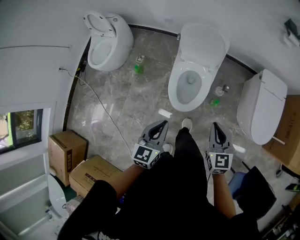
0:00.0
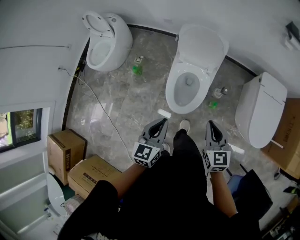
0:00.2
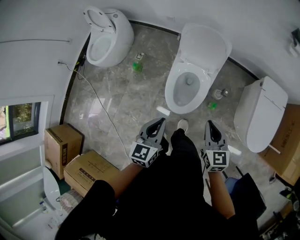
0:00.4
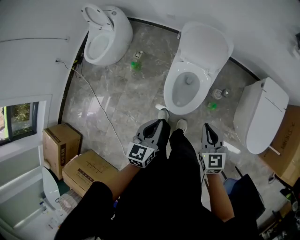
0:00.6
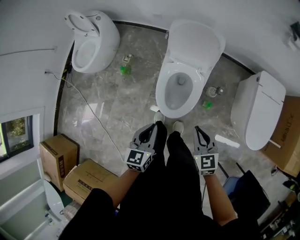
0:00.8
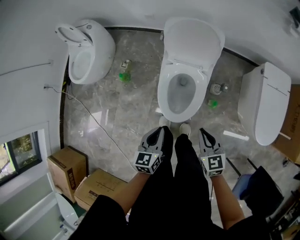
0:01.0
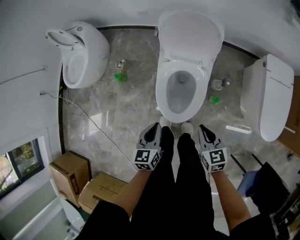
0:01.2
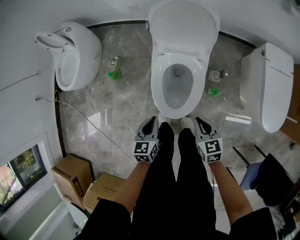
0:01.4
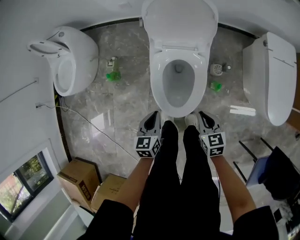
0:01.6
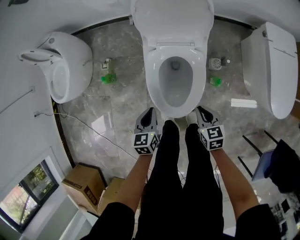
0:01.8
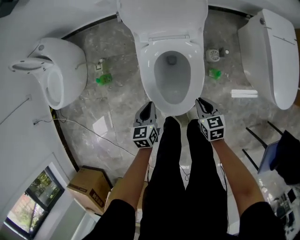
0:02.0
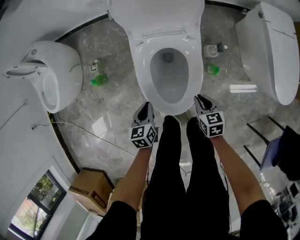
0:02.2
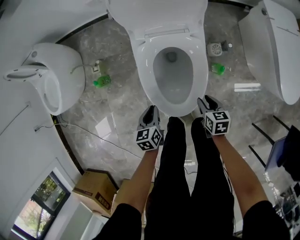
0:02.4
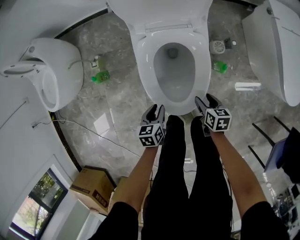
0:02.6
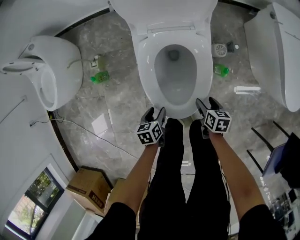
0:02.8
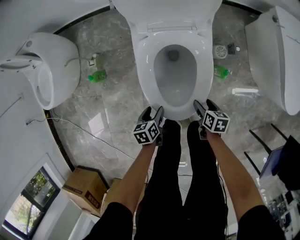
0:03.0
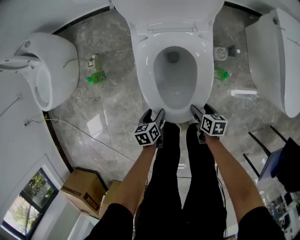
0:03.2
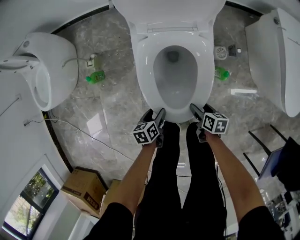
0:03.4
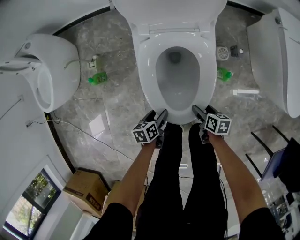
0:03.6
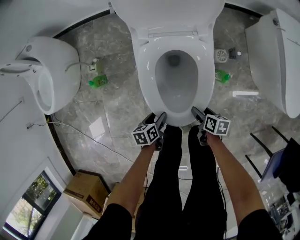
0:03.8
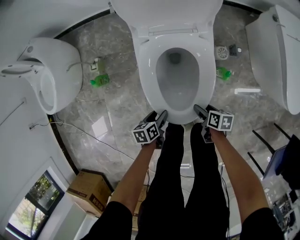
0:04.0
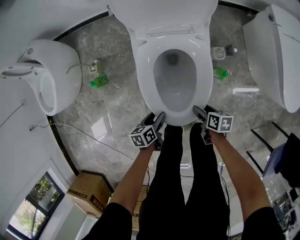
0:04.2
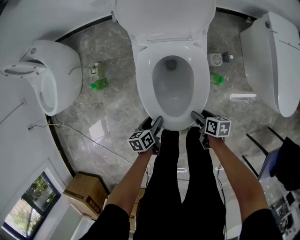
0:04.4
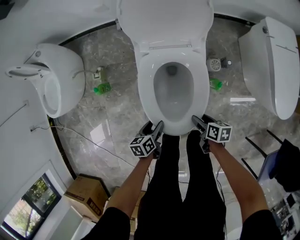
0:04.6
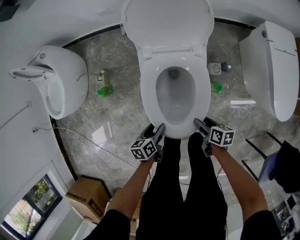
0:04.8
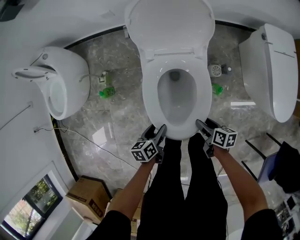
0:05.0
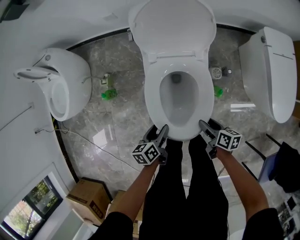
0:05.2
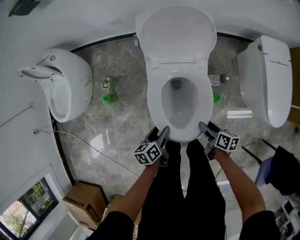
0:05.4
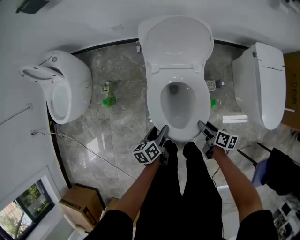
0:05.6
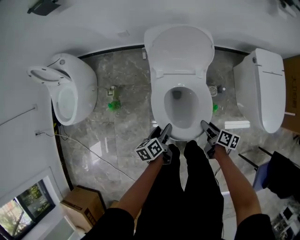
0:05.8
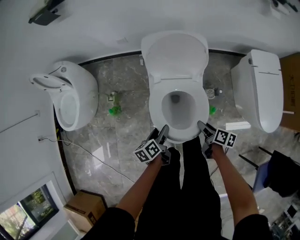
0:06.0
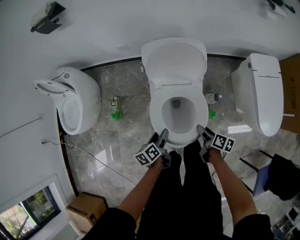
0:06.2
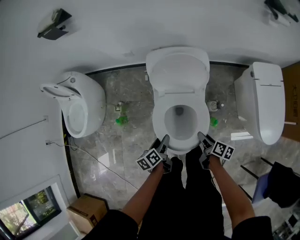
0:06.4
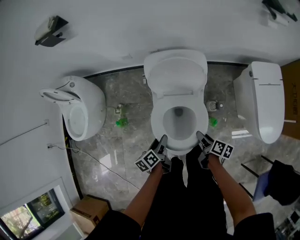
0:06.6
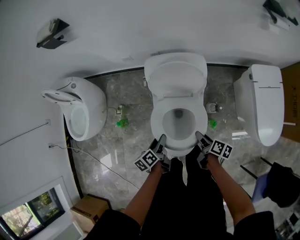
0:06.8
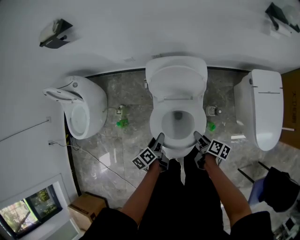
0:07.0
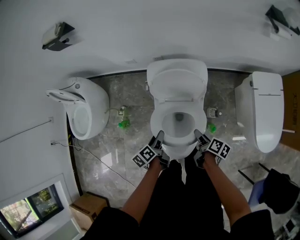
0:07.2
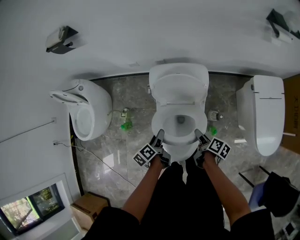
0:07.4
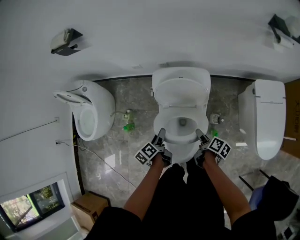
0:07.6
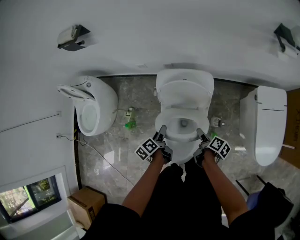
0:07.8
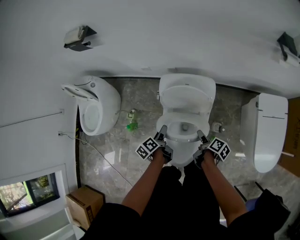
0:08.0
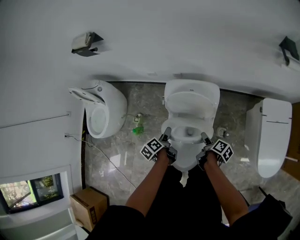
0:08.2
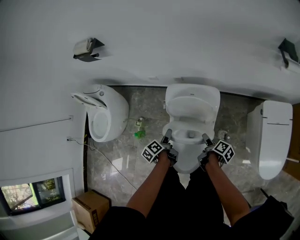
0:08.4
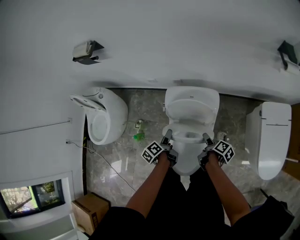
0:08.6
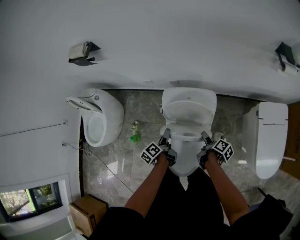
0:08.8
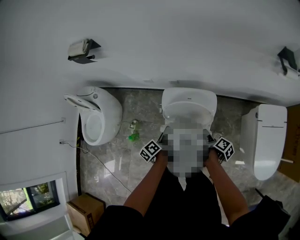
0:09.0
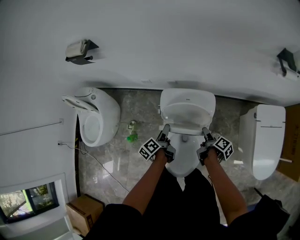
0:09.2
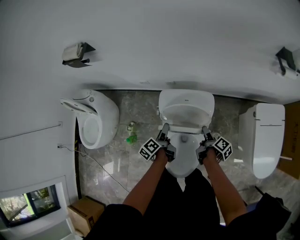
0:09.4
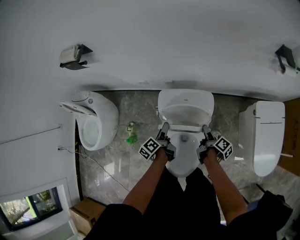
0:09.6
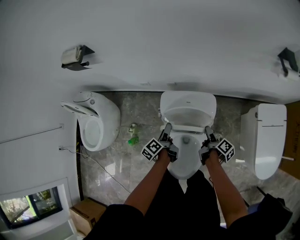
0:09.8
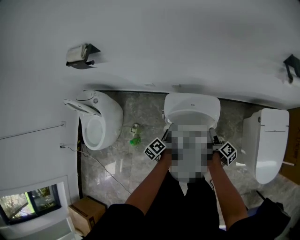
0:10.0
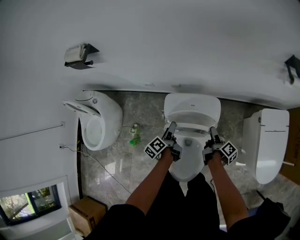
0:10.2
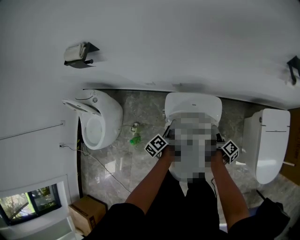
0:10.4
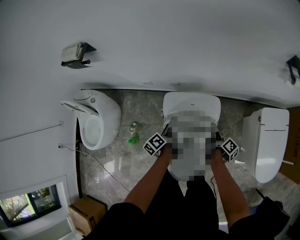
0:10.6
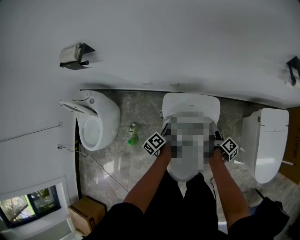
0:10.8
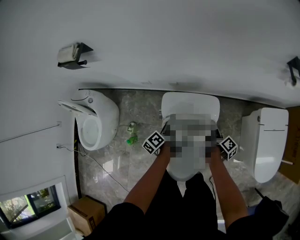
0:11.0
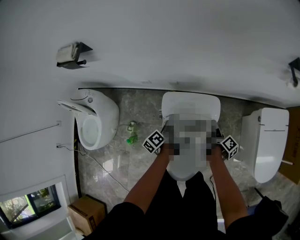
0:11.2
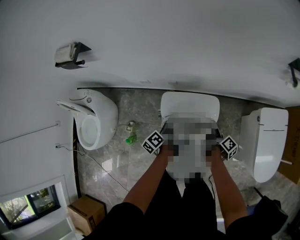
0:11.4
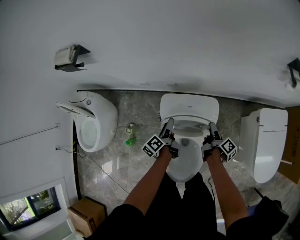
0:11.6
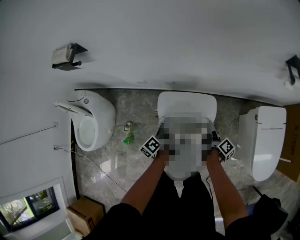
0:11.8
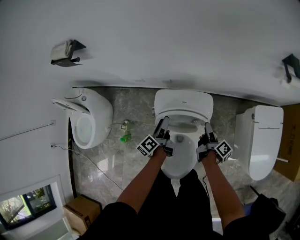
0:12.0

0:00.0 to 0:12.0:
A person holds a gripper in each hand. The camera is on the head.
0:00.0 to 0:01.6: The right gripper travels downward by about 35 cm, and turns by about 20 degrees; the left gripper goes approximately 35 cm downward and forward.
0:01.6 to 0:03.0: The two grippers go some 25 cm downward. The right gripper changes its angle by some 40 degrees, and opens up. Meanwhile the left gripper changes its angle by roughly 30 degrees, and opens.
0:03.0 to 0:04.4: The grippers move only a little.
0:04.4 to 0:06.0: The two grippers go roughly 25 cm upward and forward. The right gripper turns by roughly 20 degrees.
0:06.0 to 0:07.6: Both grippers travel together forward and upward, some 15 cm.
0:07.6 to 0:09.0: Both grippers travel together forward, some 10 cm.
0:09.0 to 0:10.4: Both grippers move forward, roughly 10 cm.
0:10.4 to 0:12.0: There are only small adjustments of the grippers.

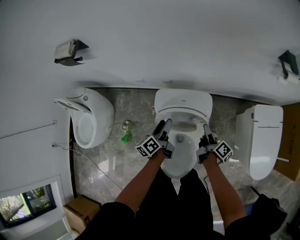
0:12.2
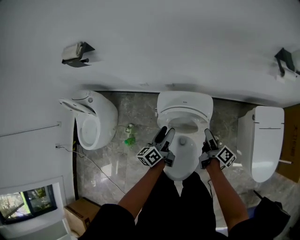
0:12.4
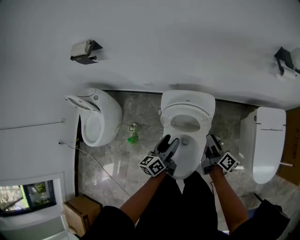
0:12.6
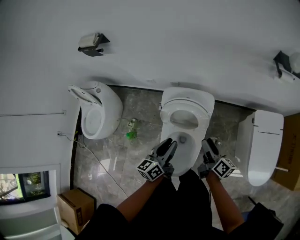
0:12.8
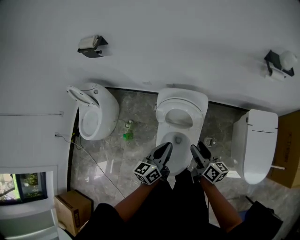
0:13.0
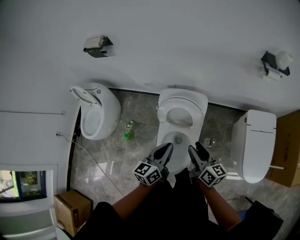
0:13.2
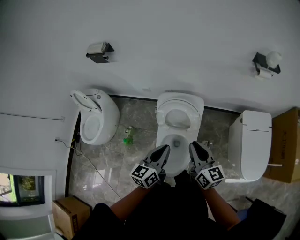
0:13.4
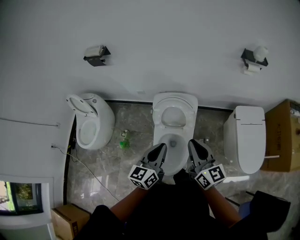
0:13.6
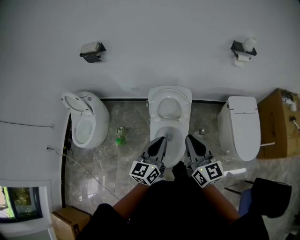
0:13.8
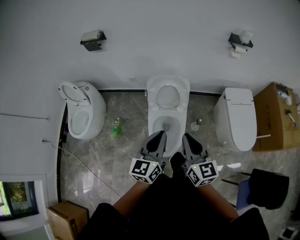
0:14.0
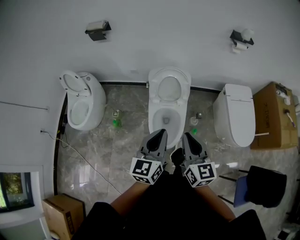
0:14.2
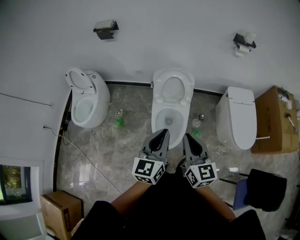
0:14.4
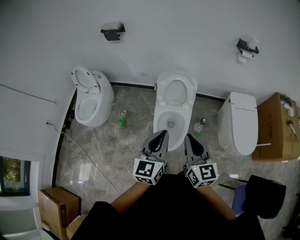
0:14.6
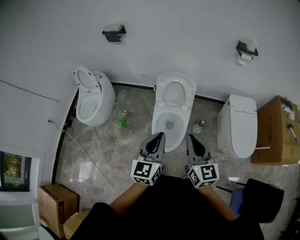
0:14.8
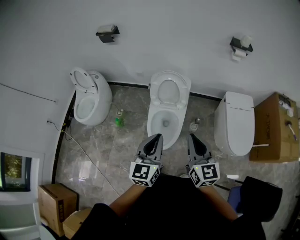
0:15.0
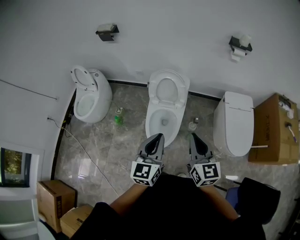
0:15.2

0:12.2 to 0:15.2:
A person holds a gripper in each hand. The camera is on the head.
0:12.2 to 0:13.8: The left gripper travels backward and upward by about 40 cm, twists some 40 degrees clockwise, seen from behind, and closes. Meanwhile the right gripper is displaced upward and backward by approximately 50 cm, rolls counterclockwise, seen from behind, by roughly 70 degrees, and closes its fingers.
0:13.8 to 0:15.2: The right gripper moves backward and to the right, approximately 20 cm; the left gripper moves backward, approximately 20 cm.

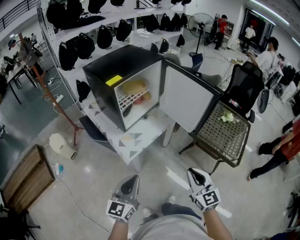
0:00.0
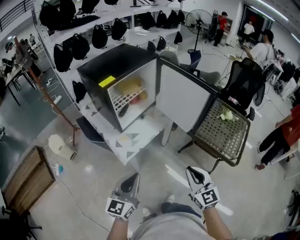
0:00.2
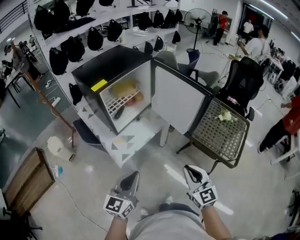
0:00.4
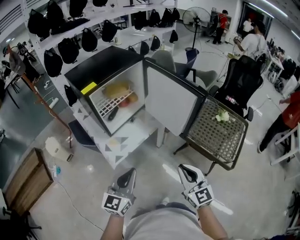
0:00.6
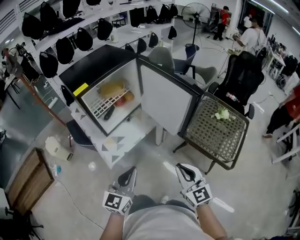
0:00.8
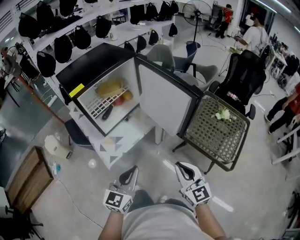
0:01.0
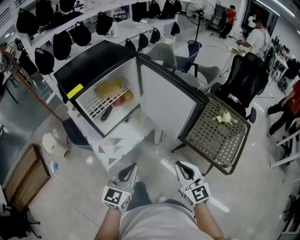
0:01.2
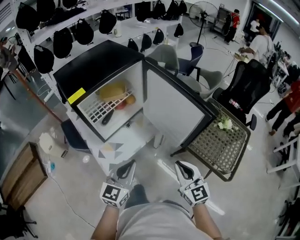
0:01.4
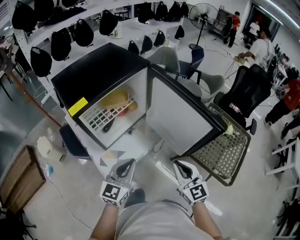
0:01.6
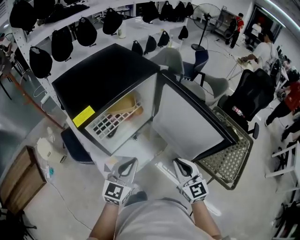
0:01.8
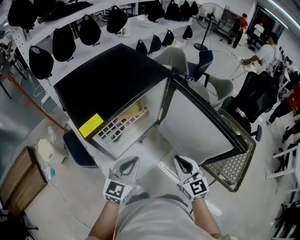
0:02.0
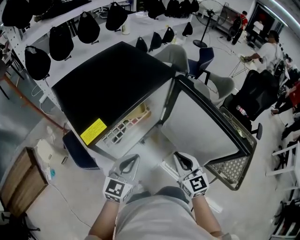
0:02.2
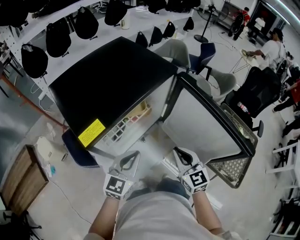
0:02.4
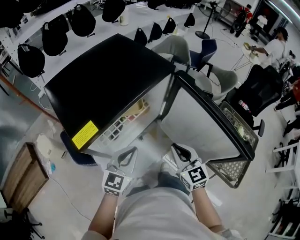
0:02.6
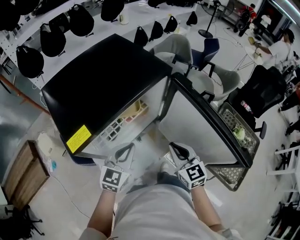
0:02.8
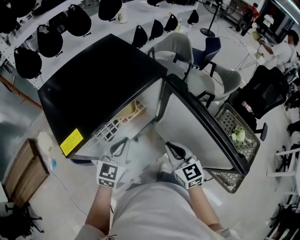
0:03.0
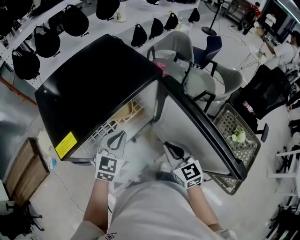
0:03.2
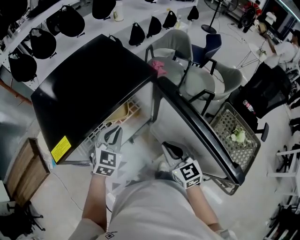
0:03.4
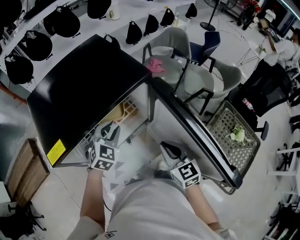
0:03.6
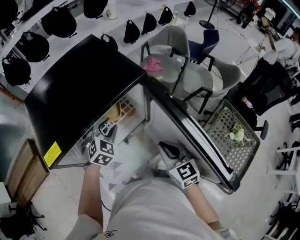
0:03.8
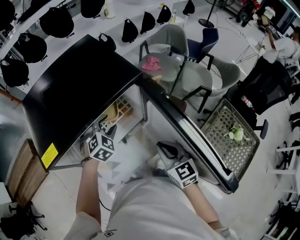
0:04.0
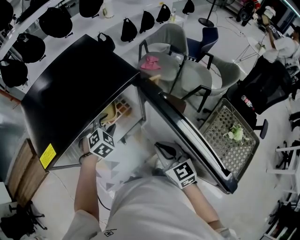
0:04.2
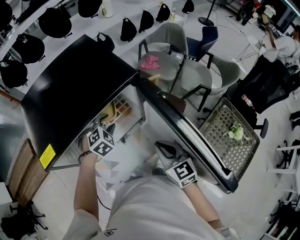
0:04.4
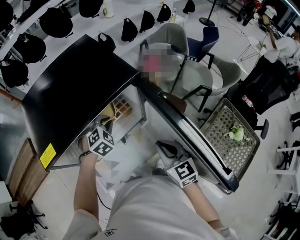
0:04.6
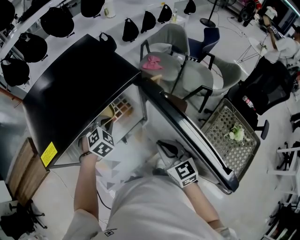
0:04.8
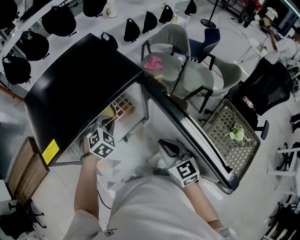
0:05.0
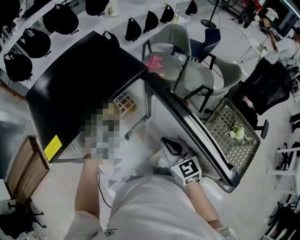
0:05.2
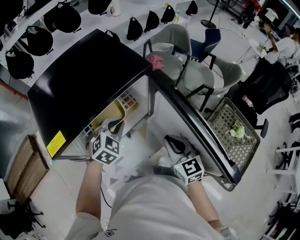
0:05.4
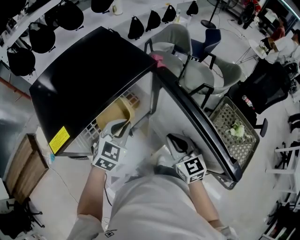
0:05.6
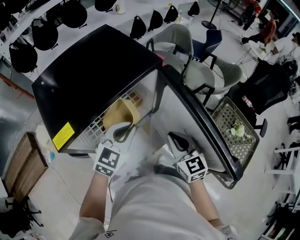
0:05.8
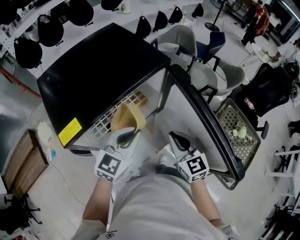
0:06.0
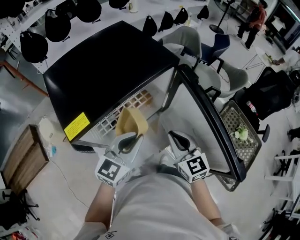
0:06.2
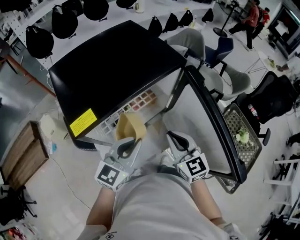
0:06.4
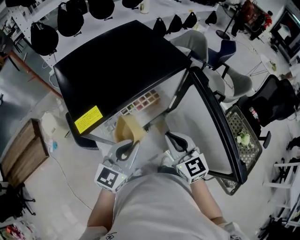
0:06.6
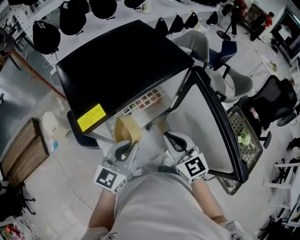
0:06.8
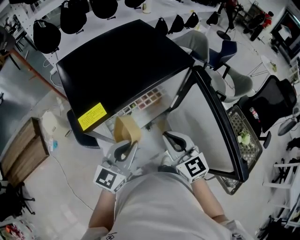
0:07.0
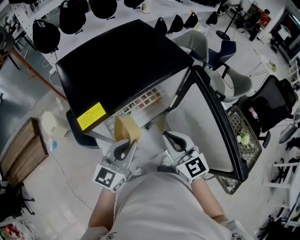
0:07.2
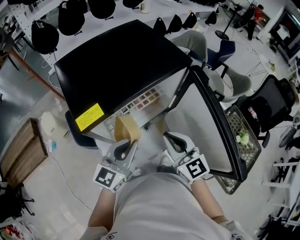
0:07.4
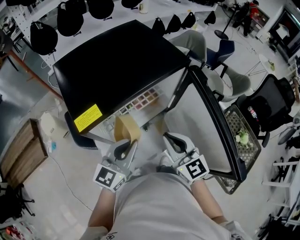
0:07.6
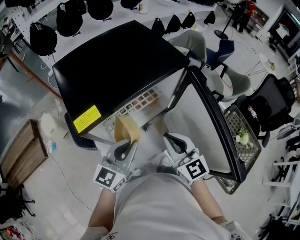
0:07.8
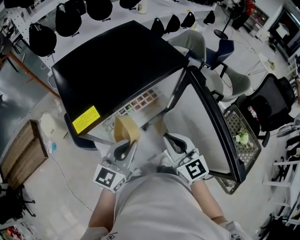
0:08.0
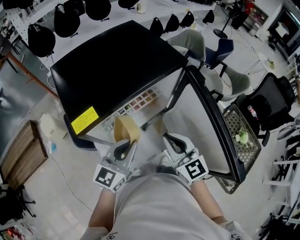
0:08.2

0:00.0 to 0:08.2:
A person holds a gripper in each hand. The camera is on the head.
0:00.0 to 0:01.6: Both grippers move forward, approximately 25 cm.
0:01.6 to 0:03.2: Both grippers move forward, some 25 cm. The left gripper rotates roughly 20 degrees.
0:03.2 to 0:05.0: The left gripper moves forward and downward, some 10 cm, turns by roughly 40 degrees, and opens and closes again.
0:05.0 to 0:06.6: The left gripper goes some 20 cm backward and upward, and tips its fingers upward by approximately 40 degrees. Meanwhile the right gripper moves to the left and upward, approximately 10 cm.
0:06.6 to 0:08.2: The grippers move only a little.
